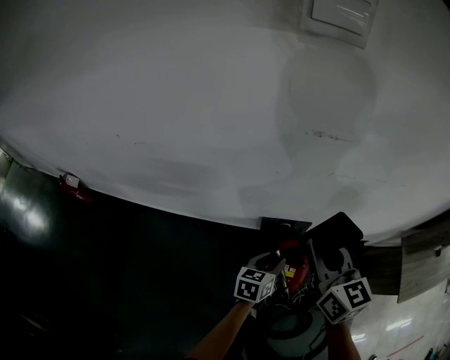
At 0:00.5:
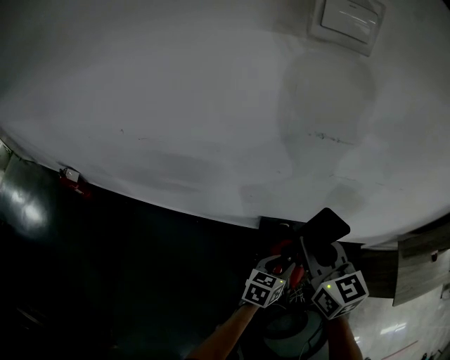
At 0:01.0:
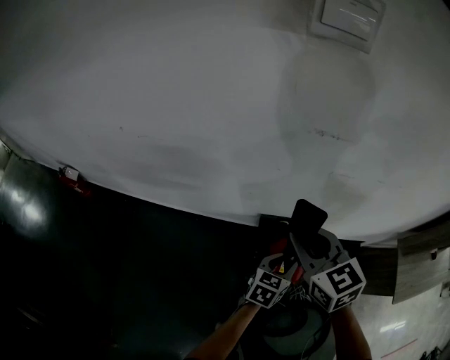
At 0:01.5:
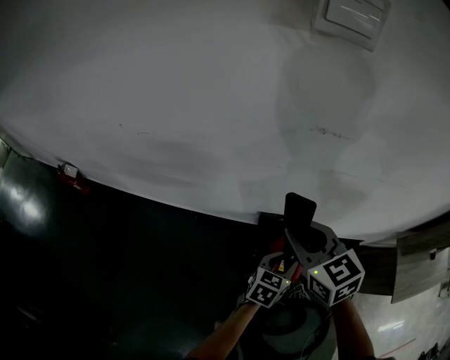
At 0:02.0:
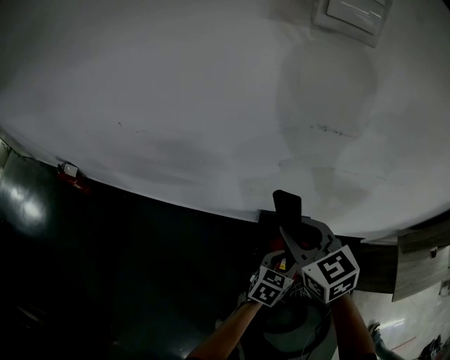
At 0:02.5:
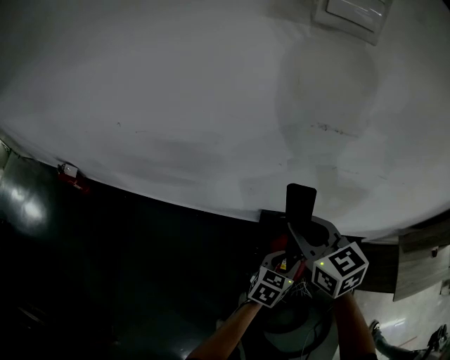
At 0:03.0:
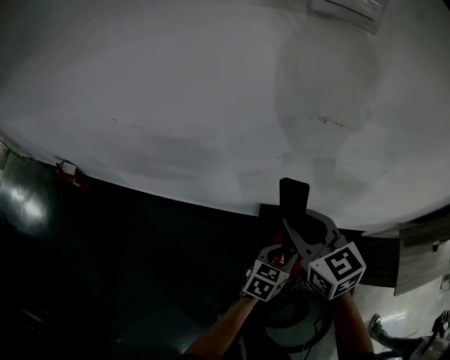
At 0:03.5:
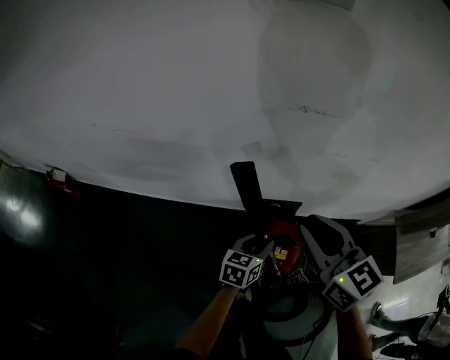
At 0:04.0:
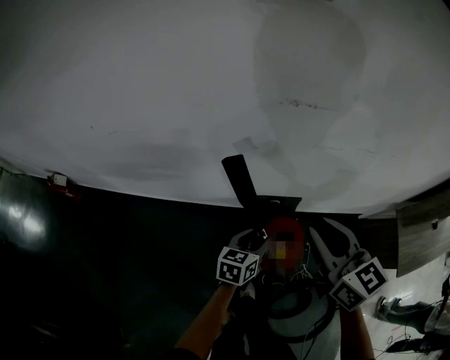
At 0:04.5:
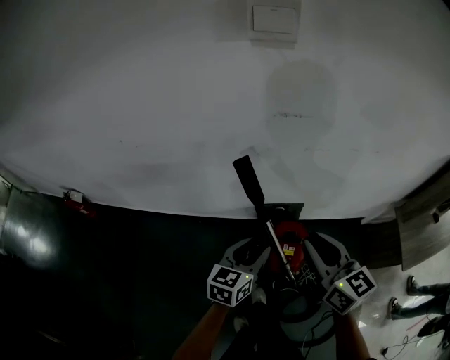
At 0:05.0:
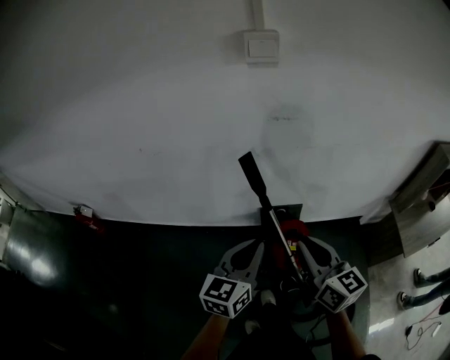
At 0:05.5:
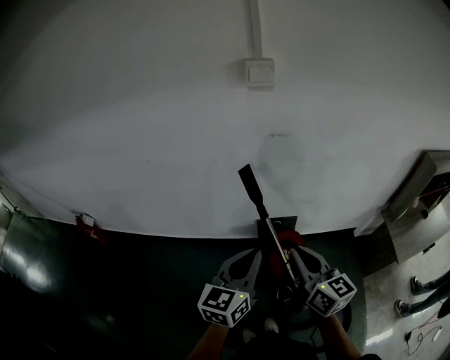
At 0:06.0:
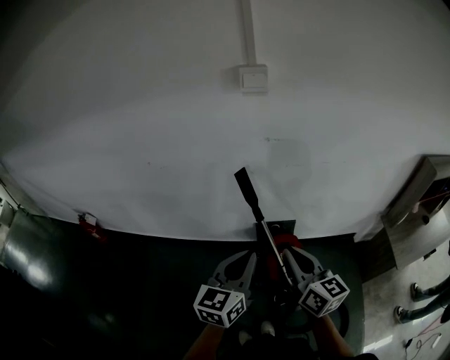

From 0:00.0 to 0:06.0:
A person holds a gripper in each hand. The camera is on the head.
From 0:00.0 to 0:02.0: The left gripper changes place by about 5 cm. The right gripper travels to the left by roughly 10 cm, and turns by roughly 30 degrees.
From 0:02.0 to 0:04.0: The left gripper shifts some 5 cm to the left. Meanwhile the right gripper is displaced to the right by approximately 10 cm, and changes its angle by roughly 30 degrees.
From 0:04.0 to 0:06.0: The left gripper travels upward and backward by roughly 40 cm, swivels roughly 30 degrees, and closes its fingers, while the right gripper goes roughly 25 cm backward.

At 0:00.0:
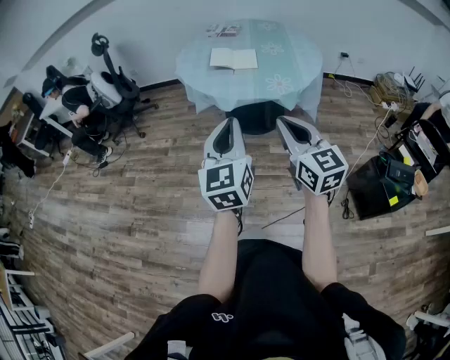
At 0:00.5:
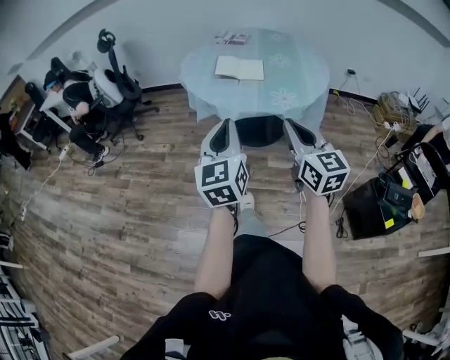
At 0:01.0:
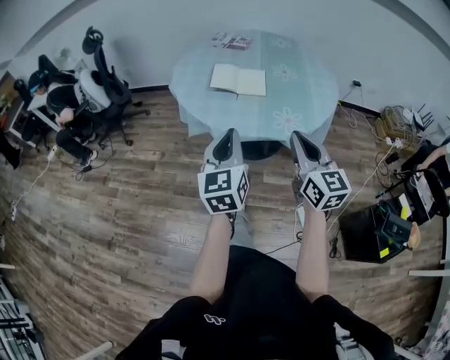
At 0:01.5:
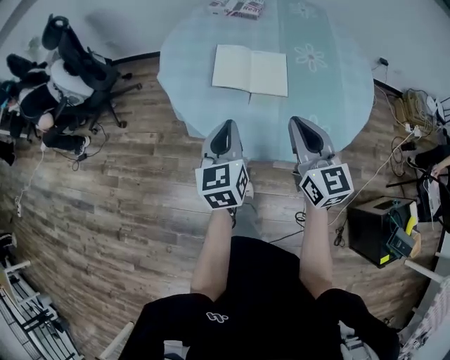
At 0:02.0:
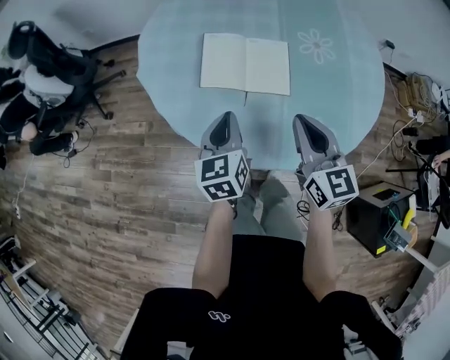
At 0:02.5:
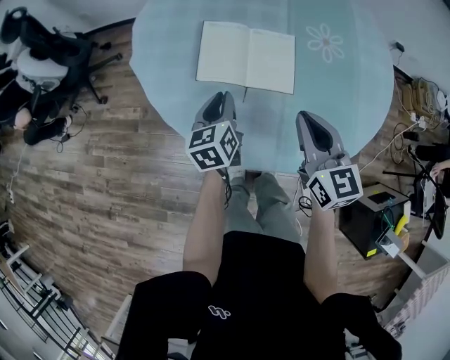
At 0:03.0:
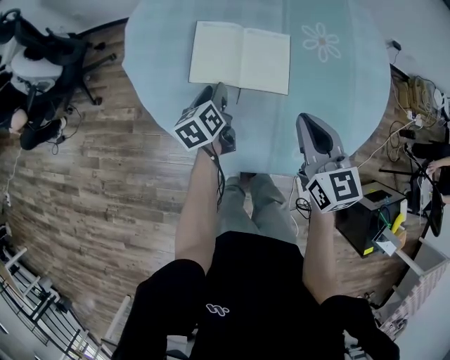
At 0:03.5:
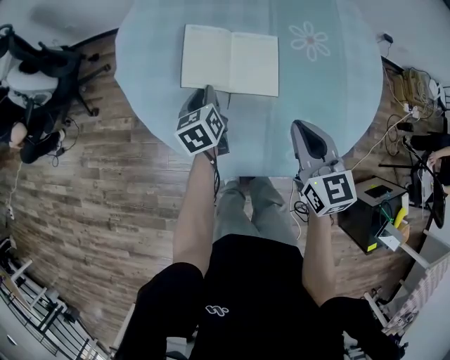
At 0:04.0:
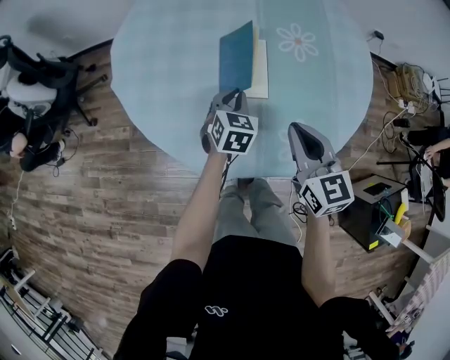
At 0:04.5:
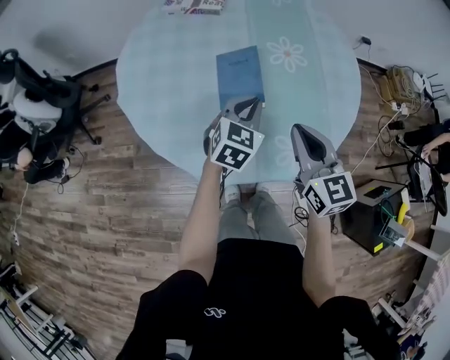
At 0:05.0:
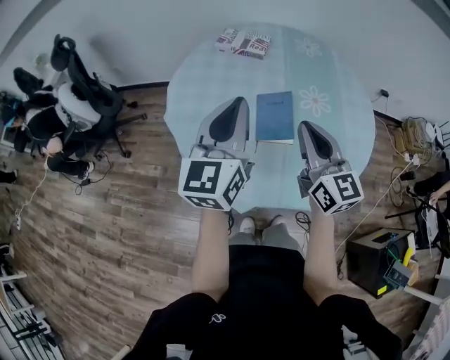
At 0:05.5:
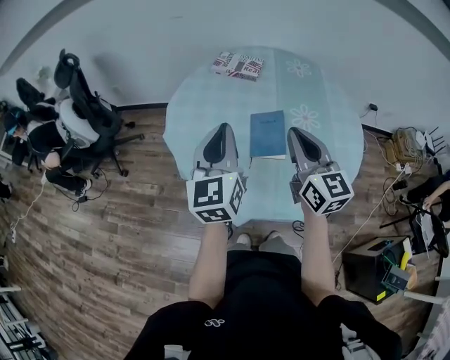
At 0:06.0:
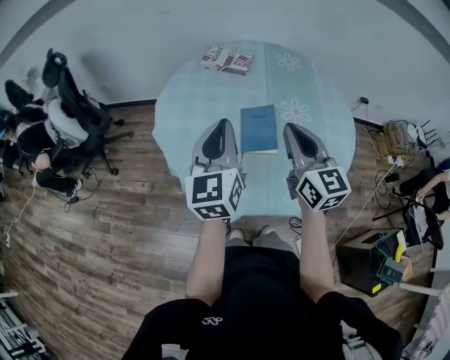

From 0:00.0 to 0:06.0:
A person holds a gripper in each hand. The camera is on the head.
From 0:00.0 to 0:02.0: Both grippers are carried forward, approximately 60 cm. The left gripper is displaced downward by approximately 25 cm, and swivels some 30 degrees.
From 0:02.0 to 0:04.0: The left gripper travels to the right, downward and forward by roughly 20 cm, turns by roughly 40 degrees, and opens, then closes again; the right gripper is displaced to the right by approximately 5 cm.
From 0:04.0 to 0:06.0: The left gripper moves upward, about 35 cm, and tilts its fingers roughly 40 degrees upward. Meanwhile the right gripper shifts roughly 20 cm upward.

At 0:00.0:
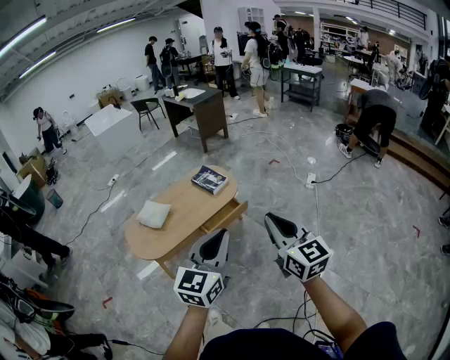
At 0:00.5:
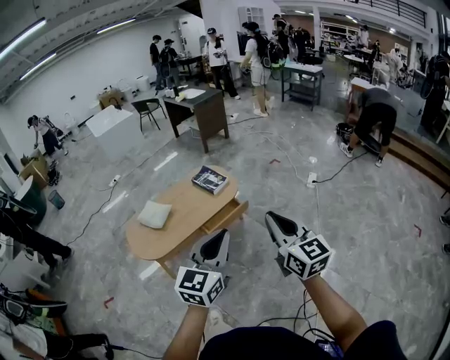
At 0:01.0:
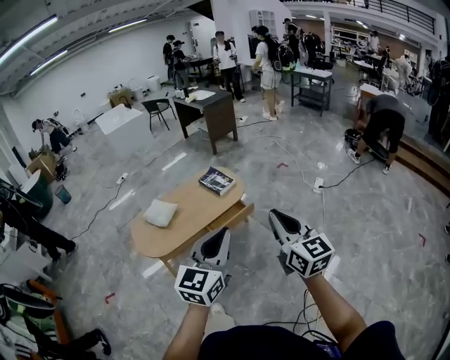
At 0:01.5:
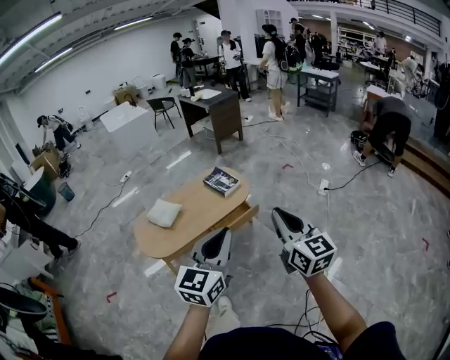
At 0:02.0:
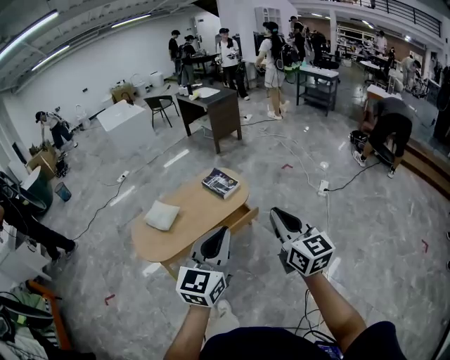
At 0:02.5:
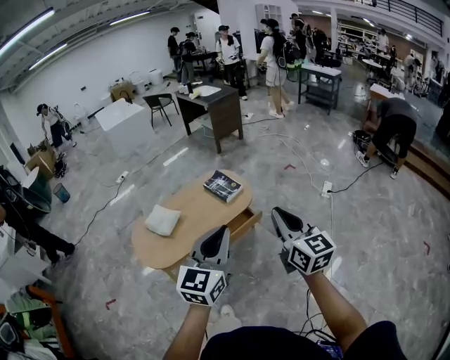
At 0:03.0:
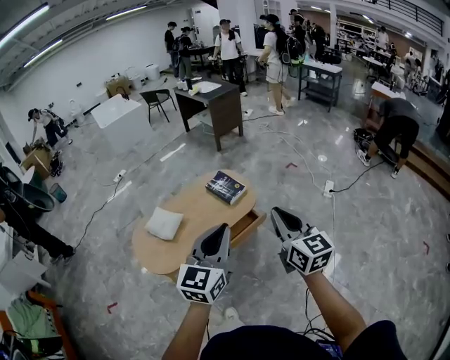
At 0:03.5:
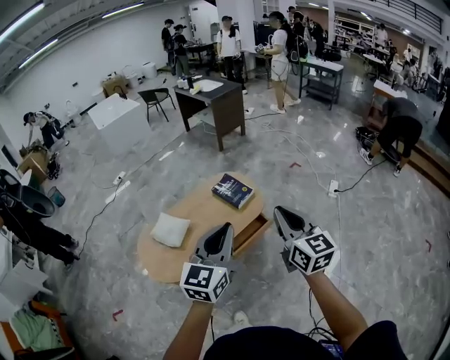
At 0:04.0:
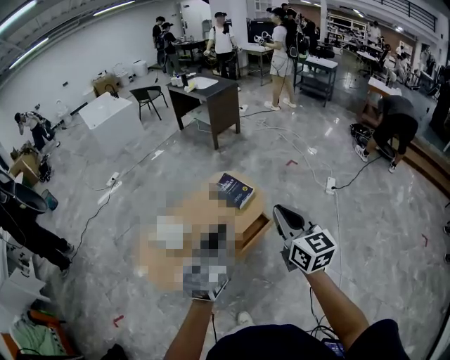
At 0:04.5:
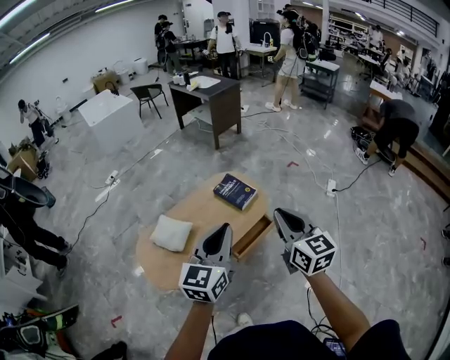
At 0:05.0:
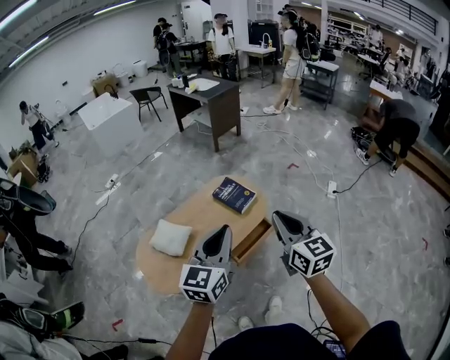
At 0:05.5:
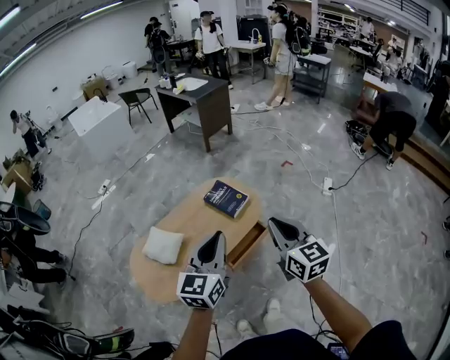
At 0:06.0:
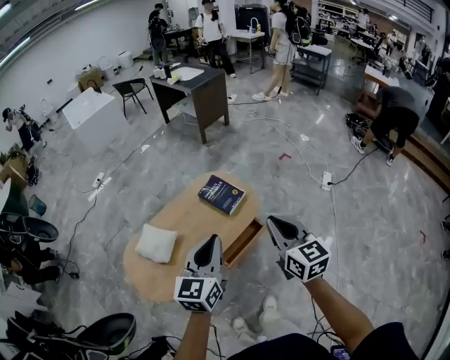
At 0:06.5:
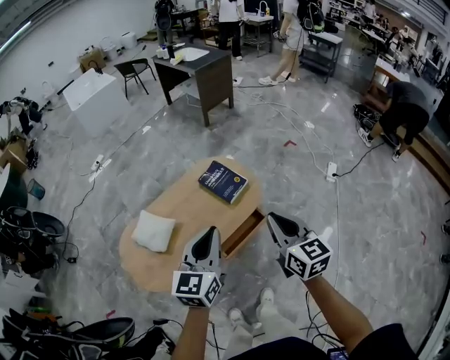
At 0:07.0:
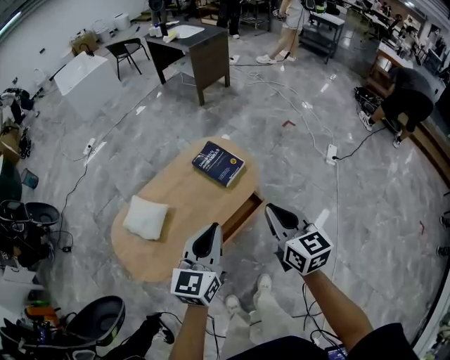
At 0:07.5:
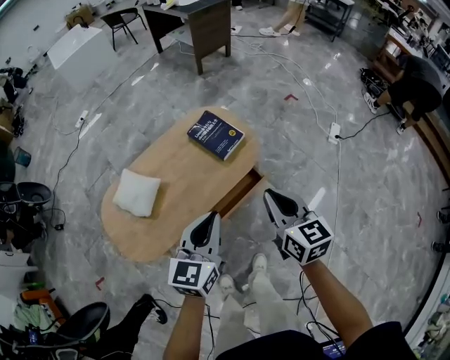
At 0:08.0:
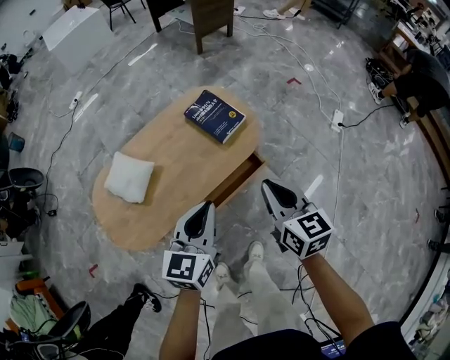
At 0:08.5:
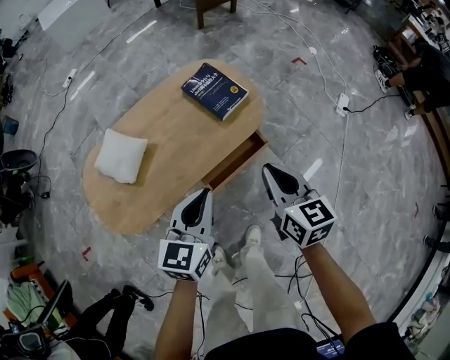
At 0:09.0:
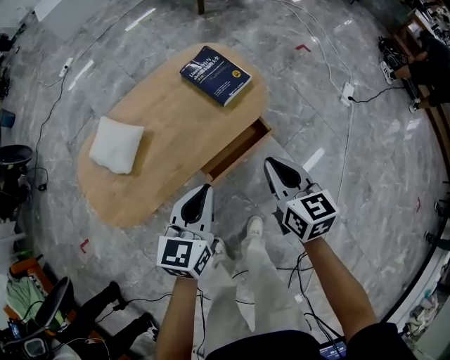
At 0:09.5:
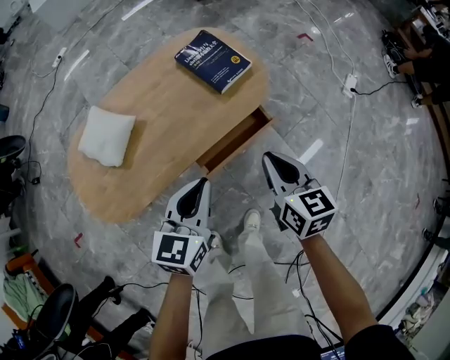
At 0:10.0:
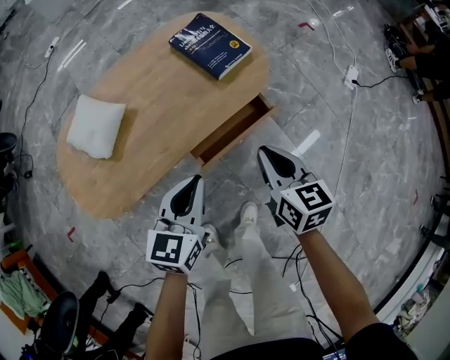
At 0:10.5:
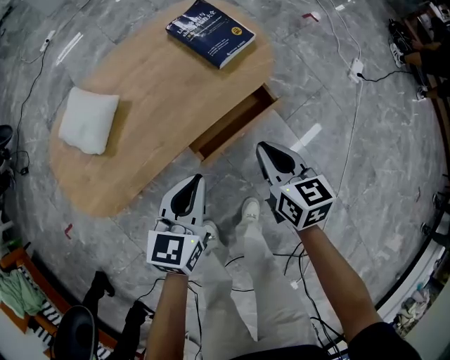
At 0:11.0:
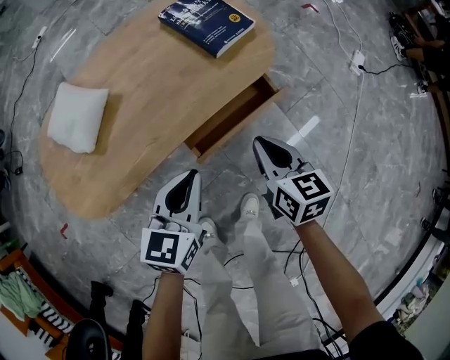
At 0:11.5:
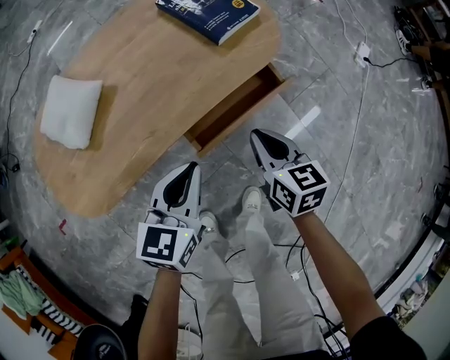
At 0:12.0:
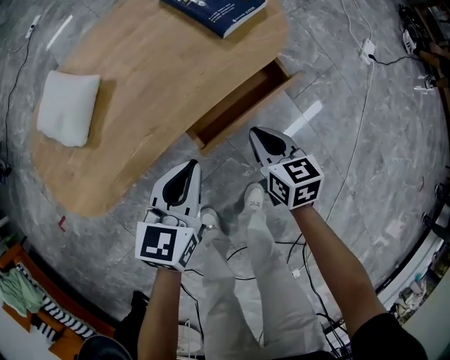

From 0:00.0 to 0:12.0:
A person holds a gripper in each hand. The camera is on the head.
From 0:00.0 to 0:02.0: The two grippers go about 5 cm forward.
From 0:02.0 to 0:04.0: Both grippers move forward and to the left, roughly 25 cm.
From 0:04.0 to 0:06.0: The two grippers go about 10 cm forward and downward.
From 0:06.0 to 0:08.0: The grippers both shift downward by roughly 15 cm.
From 0:08.0 to 0:10.0: Both grippers travel together downward, some 20 cm.
From 0:10.0 to 0:12.0: The left gripper goes some 10 cm downward. The right gripper shifts approximately 20 cm downward.

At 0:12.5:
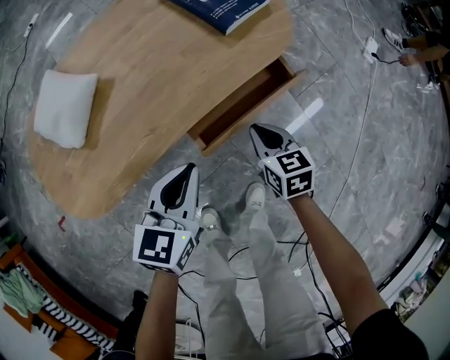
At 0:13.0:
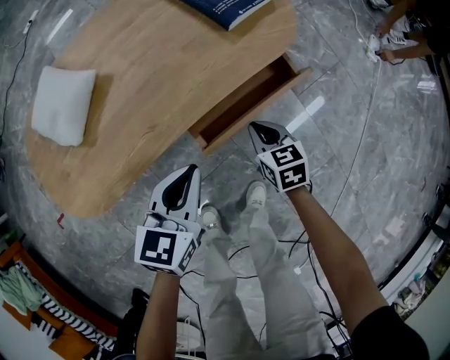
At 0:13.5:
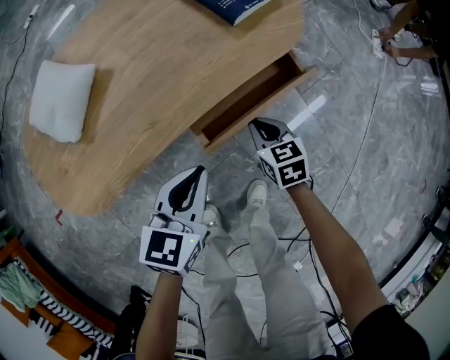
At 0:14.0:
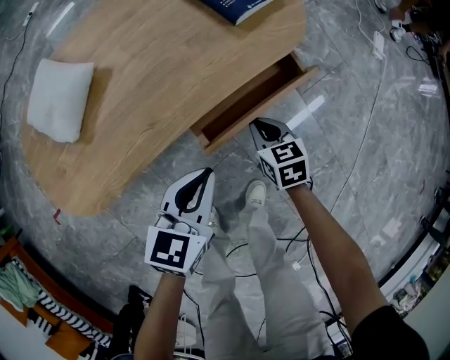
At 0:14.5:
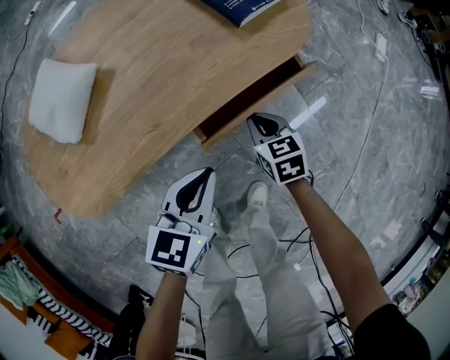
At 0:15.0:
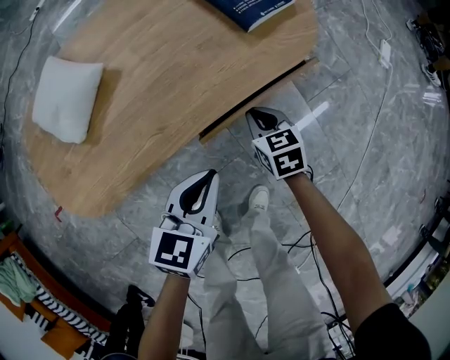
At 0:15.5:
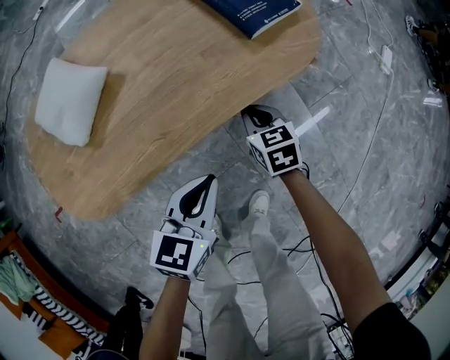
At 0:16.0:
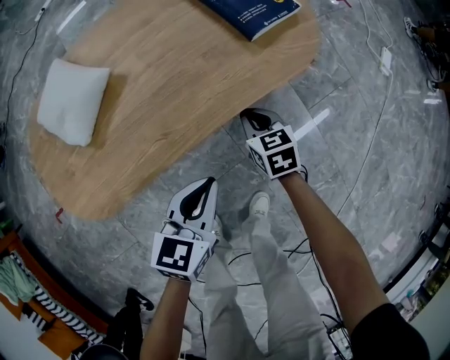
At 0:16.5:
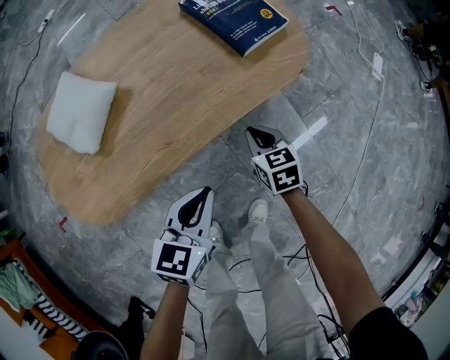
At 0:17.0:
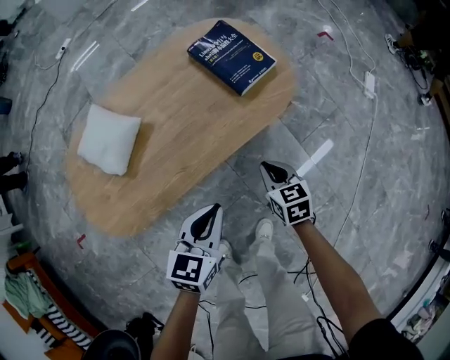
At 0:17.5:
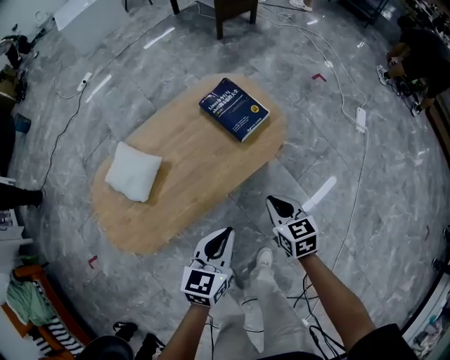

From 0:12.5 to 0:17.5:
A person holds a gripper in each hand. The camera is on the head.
From 0:12.5 to 0:15.0: The right gripper shifts about 5 cm downward and forward.
From 0:15.0 to 0:17.5: Both grippers move upward, about 20 cm.
